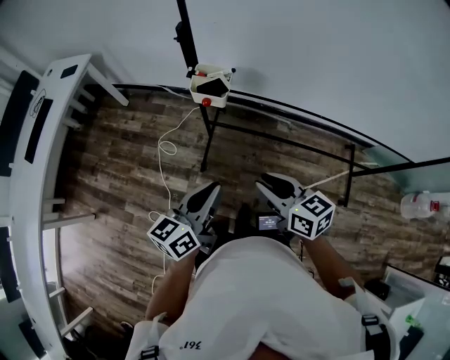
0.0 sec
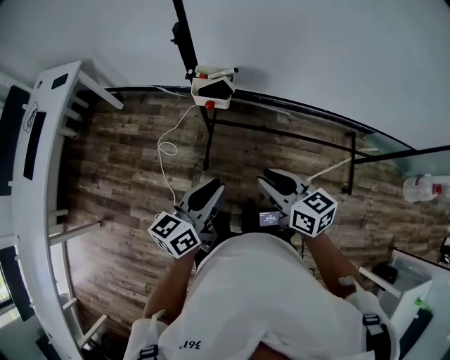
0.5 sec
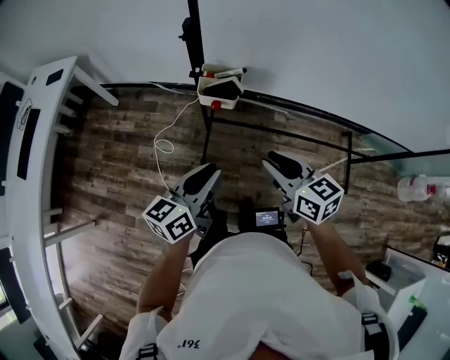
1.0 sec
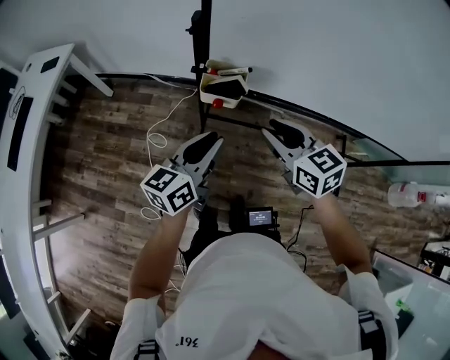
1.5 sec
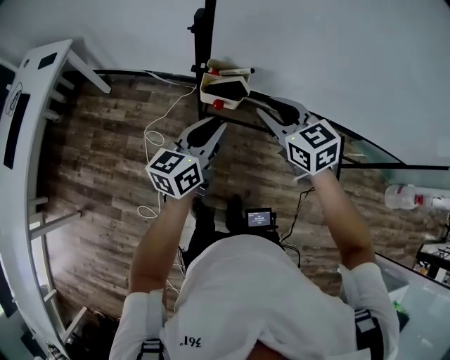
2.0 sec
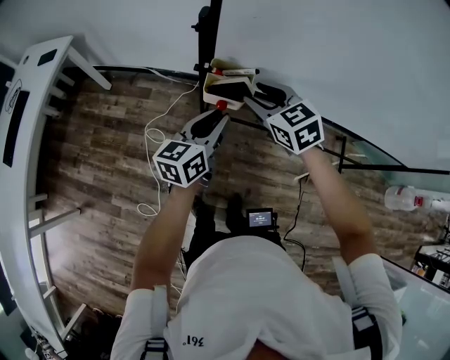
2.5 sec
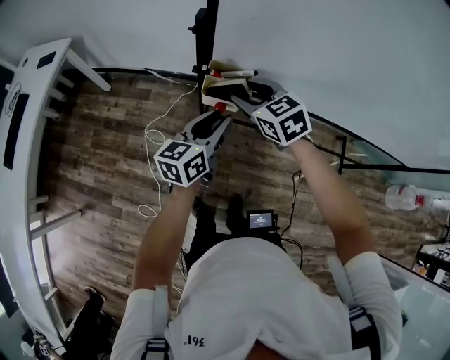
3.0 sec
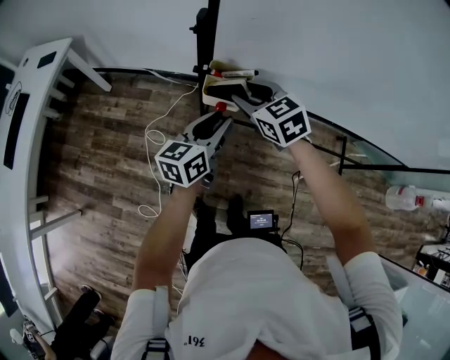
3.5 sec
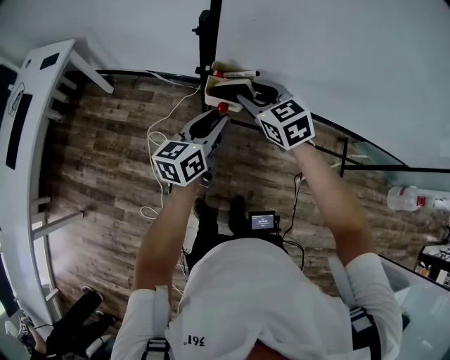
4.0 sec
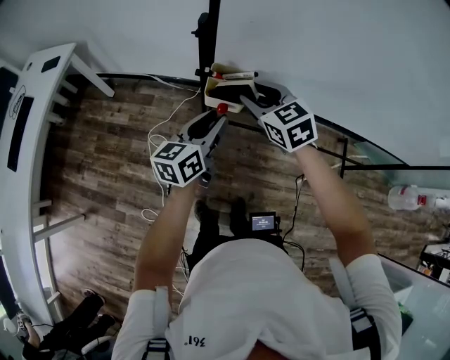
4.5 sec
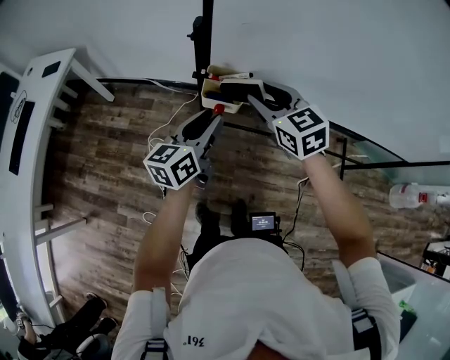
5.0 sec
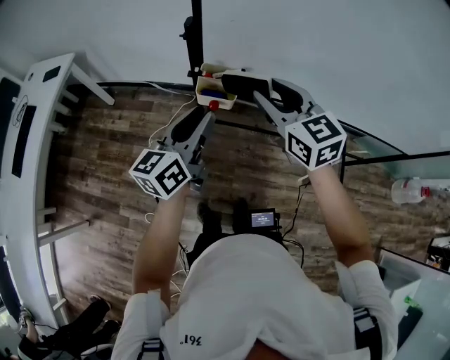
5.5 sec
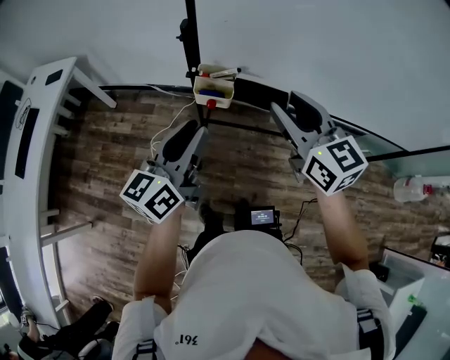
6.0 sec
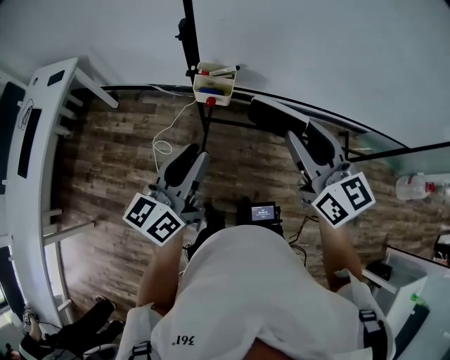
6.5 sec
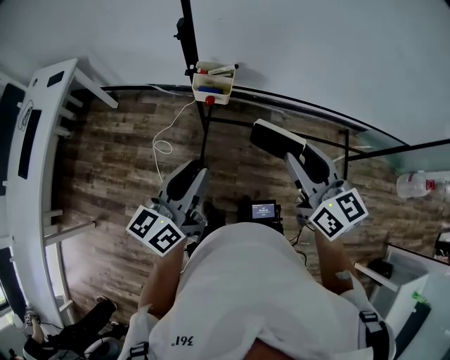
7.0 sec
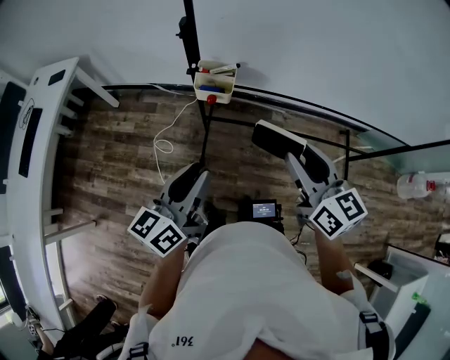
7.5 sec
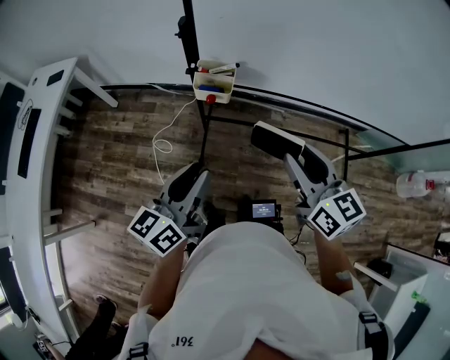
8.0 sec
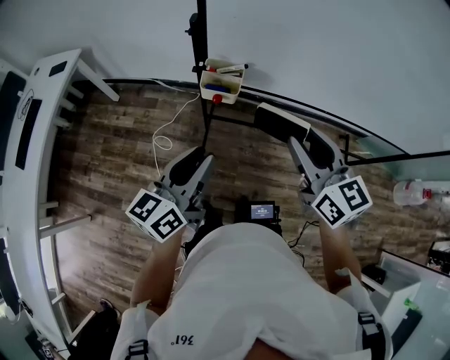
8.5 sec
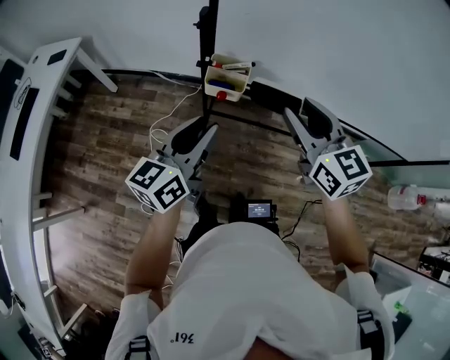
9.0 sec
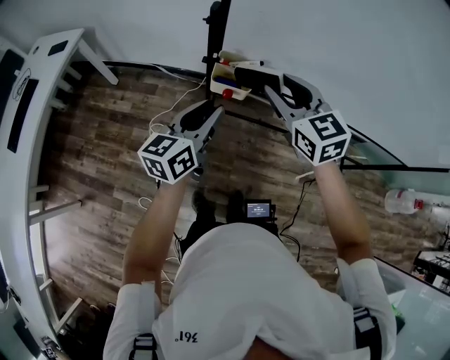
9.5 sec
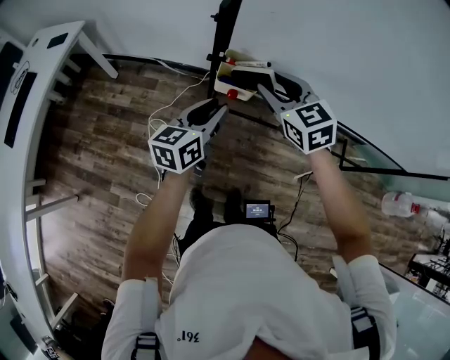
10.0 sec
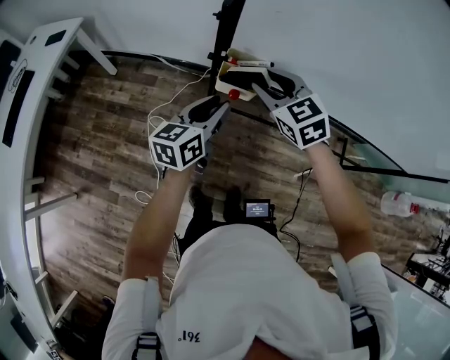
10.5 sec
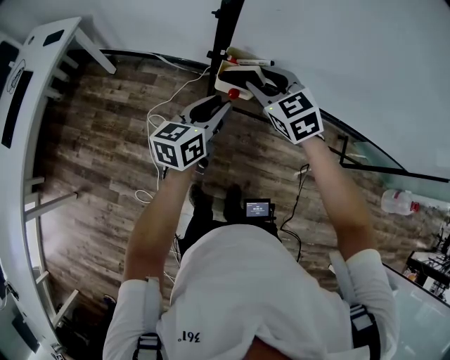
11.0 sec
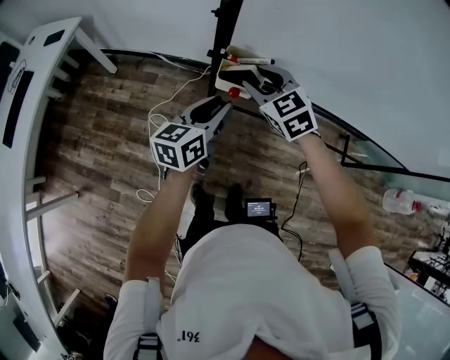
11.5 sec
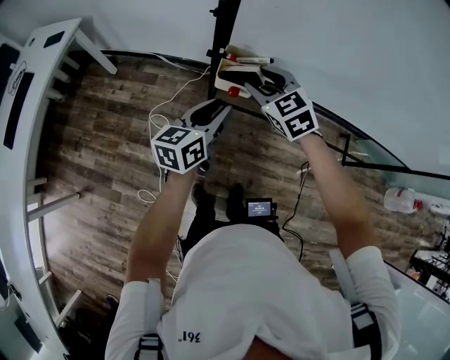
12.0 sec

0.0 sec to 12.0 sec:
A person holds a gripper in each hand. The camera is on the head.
0.0 sec to 2.0 sec: The grippers both shift forward by approximately 20 cm. The right gripper turns by about 30 degrees.
2.0 sec to 4.0 sec: The right gripper travels forward by some 5 cm.
4.0 sec to 6.0 sec: The right gripper goes about 20 cm upward, backward and to the right, and changes its angle by some 30 degrees. The left gripper moves upward and backward, some 15 cm.
6.0 sec to 8.0 sec: Both grippers travel together backward, about 10 cm.
8.0 sec to 10.0 sec: The left gripper goes some 20 cm forward and downward. Meanwhile the right gripper shifts some 25 cm forward and to the left, and changes its angle by some 30 degrees.
10.0 sec to 12.0 sec: The right gripper heads downward, covering some 5 cm.

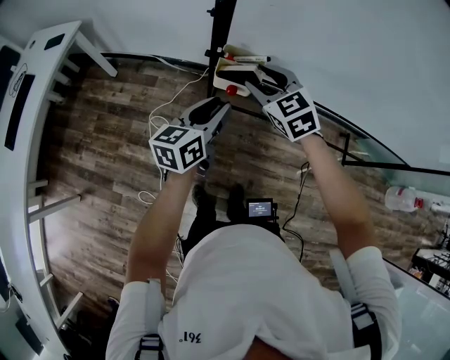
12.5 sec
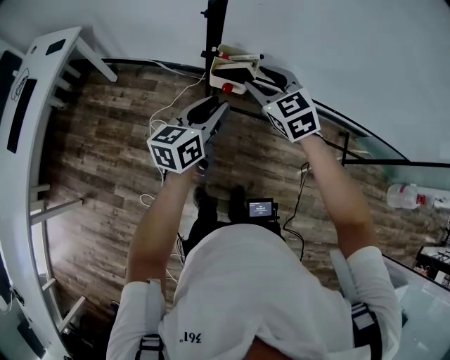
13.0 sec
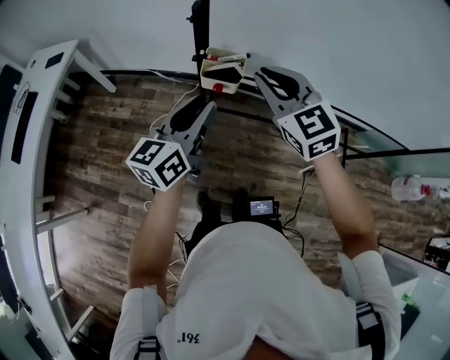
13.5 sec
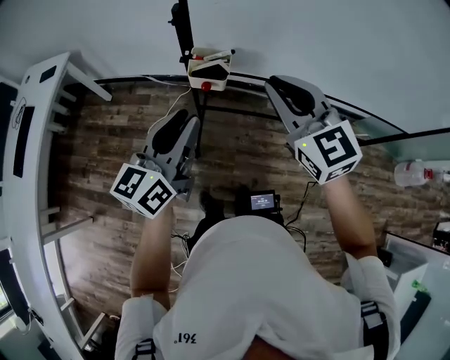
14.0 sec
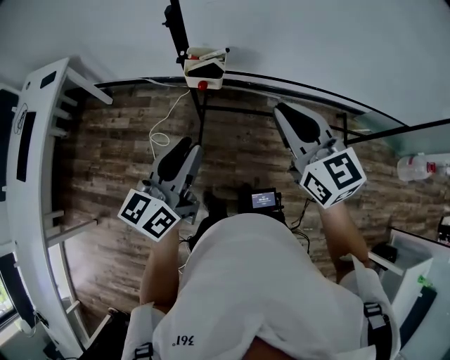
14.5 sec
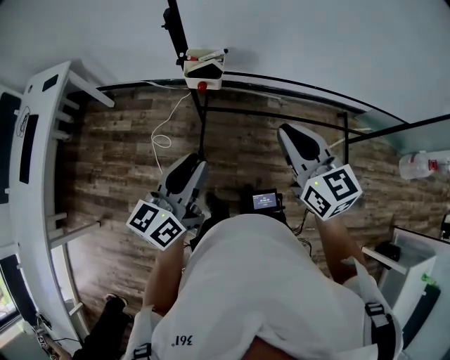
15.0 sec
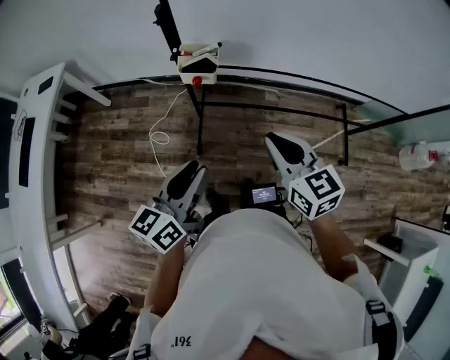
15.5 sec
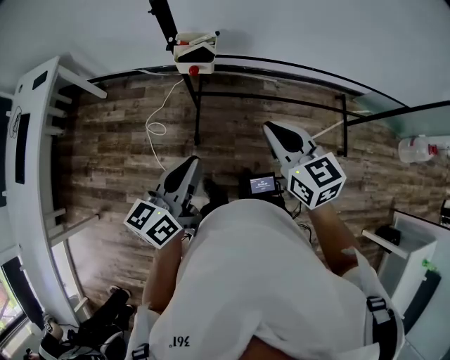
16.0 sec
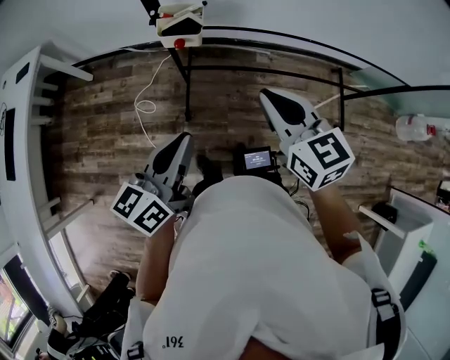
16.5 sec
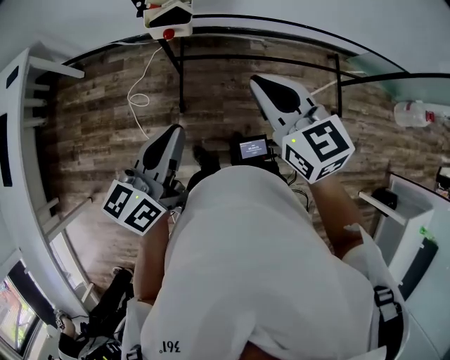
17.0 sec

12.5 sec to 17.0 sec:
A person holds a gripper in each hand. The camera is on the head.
12.5 sec to 14.5 sec: The left gripper goes approximately 20 cm backward and upward, while the right gripper moves backward, upward and to the right, roughly 25 cm, rotates about 30 degrees, and closes its fingers.
14.5 sec to 17.0 sec: Both grippers travel together downward, roughly 5 cm. The left gripper closes.

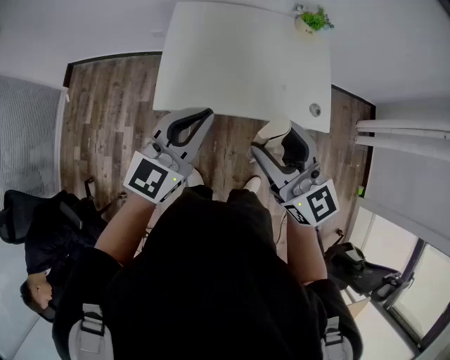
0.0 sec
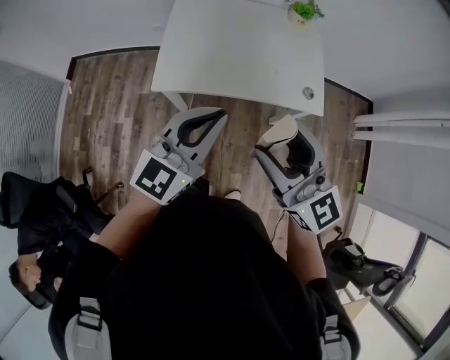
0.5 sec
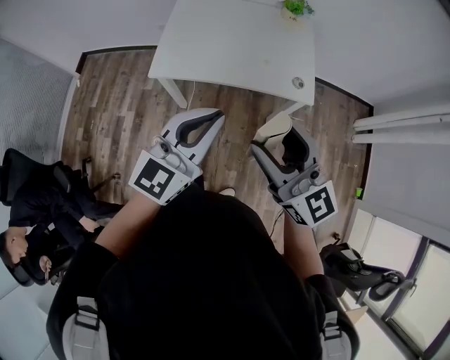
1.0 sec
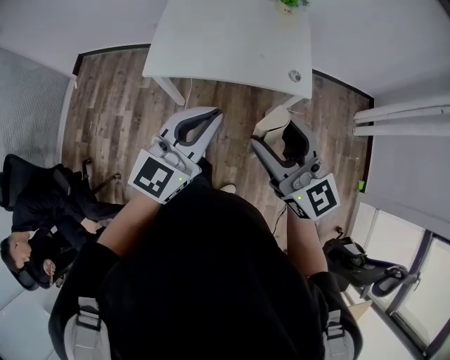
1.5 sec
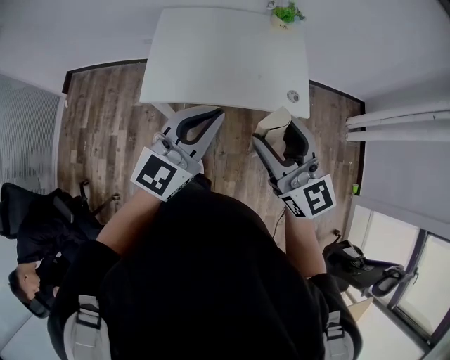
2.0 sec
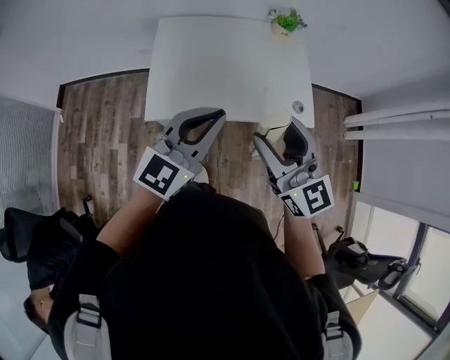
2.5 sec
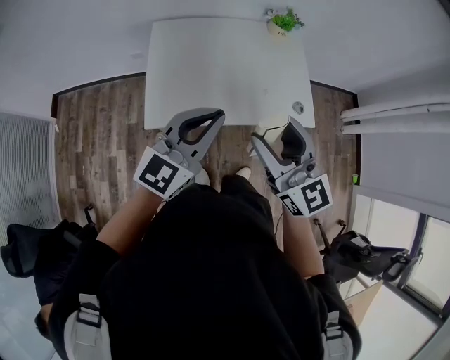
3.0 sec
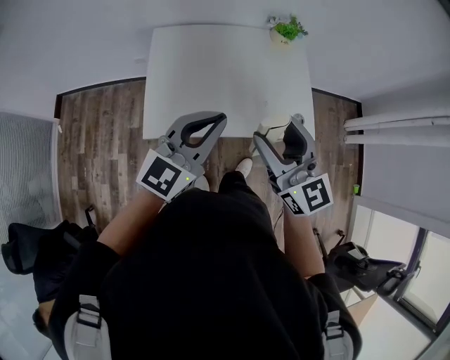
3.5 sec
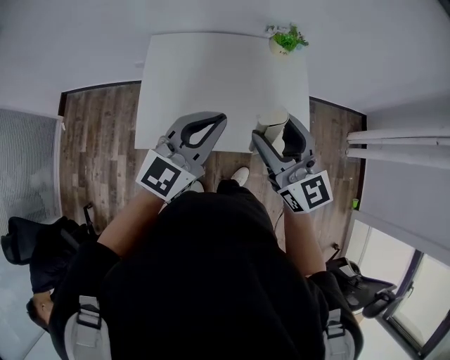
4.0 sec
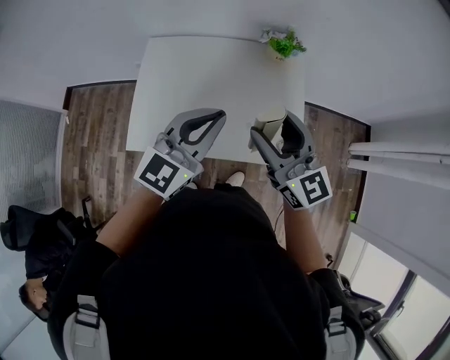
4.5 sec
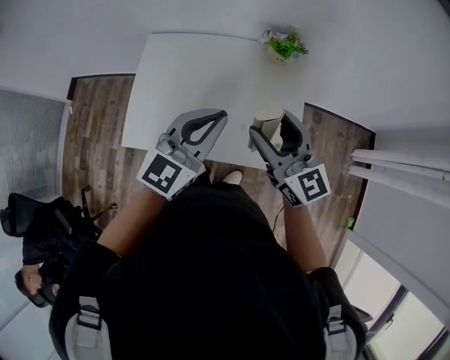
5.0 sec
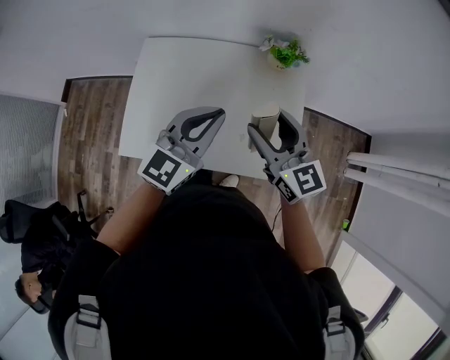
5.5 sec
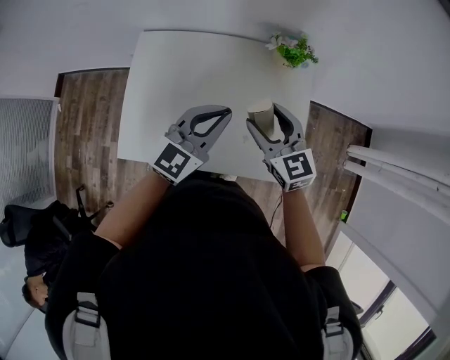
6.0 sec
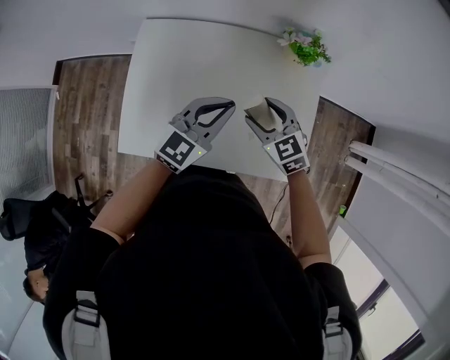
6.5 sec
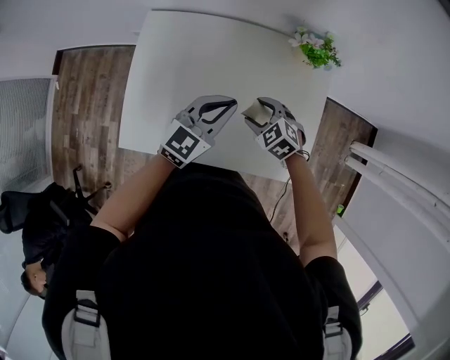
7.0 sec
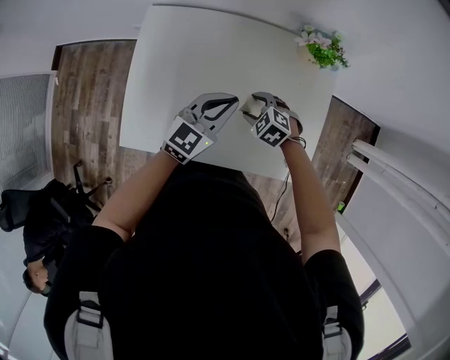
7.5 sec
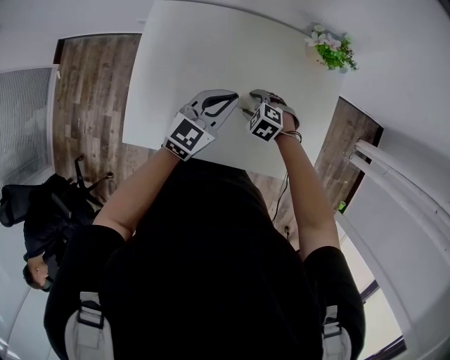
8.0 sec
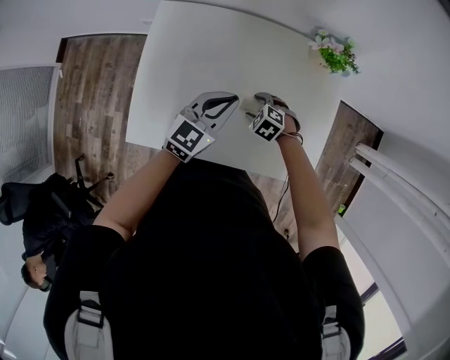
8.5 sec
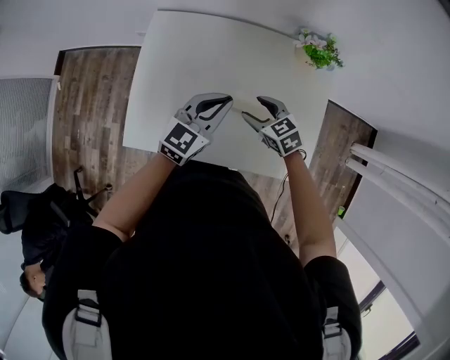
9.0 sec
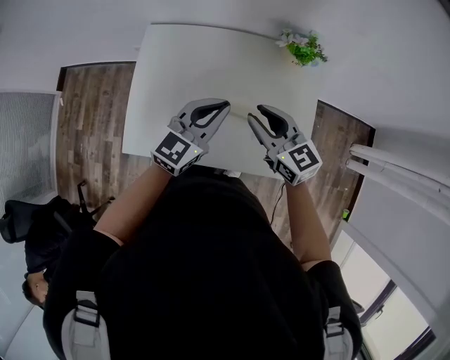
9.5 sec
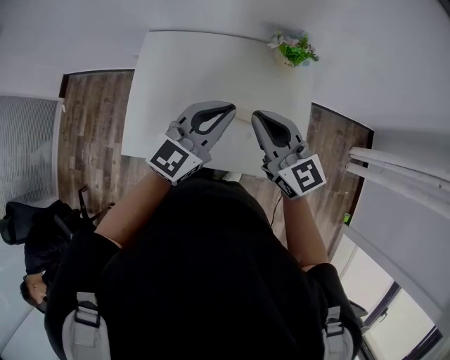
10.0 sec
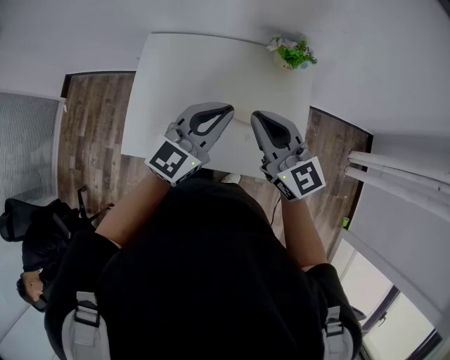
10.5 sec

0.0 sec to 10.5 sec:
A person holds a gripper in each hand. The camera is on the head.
0.0 sec to 2.0 sec: Both grippers travel together to the right and backward, about 15 cm.
2.0 sec to 4.0 sec: Both grippers move forward, approximately 20 cm.
4.0 sec to 6.5 sec: The right gripper heads downward and forward, covering about 30 cm, and tilts its fingers roughly 40 degrees downward. Meanwhile the left gripper moves forward and downward, roughly 25 cm.
6.5 sec to 8.5 sec: The left gripper travels downward and to the left by some 10 cm; the right gripper moves downward, about 20 cm, and tilts its fingers some 30 degrees downward.
8.5 sec to 10.5 sec: The left gripper is displaced upward and backward by approximately 20 cm, while the right gripper shifts roughly 40 cm upward, angles its fingers upward, by about 70 degrees, and closes.
